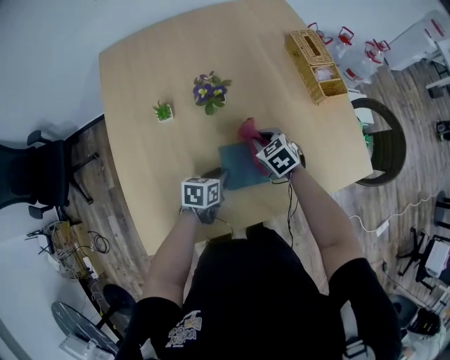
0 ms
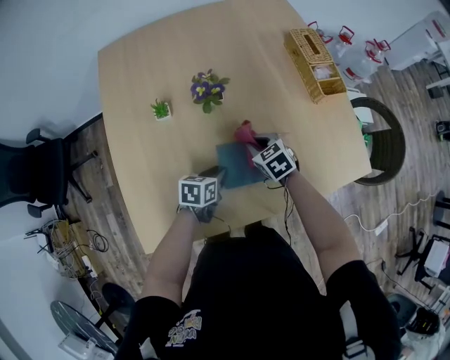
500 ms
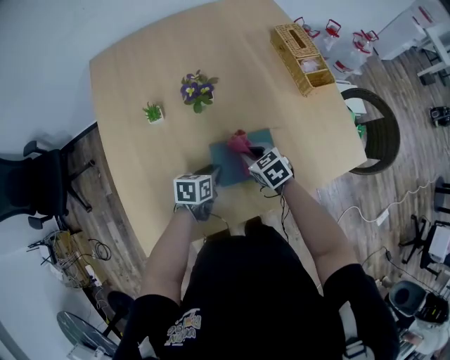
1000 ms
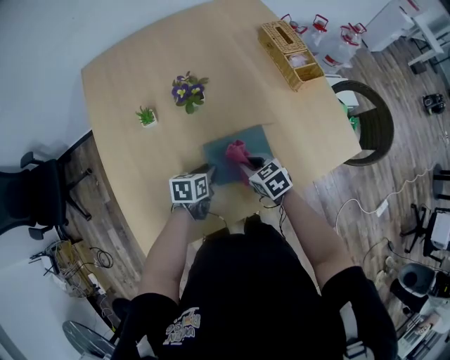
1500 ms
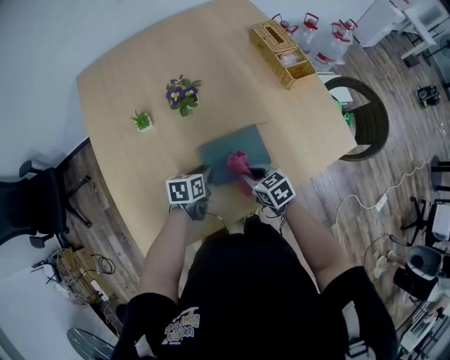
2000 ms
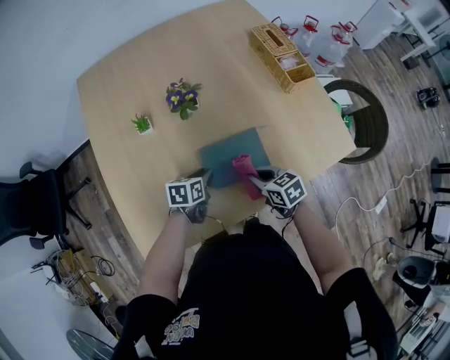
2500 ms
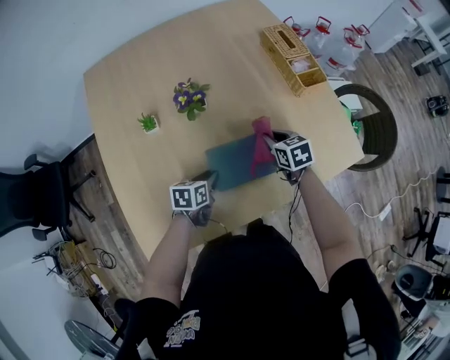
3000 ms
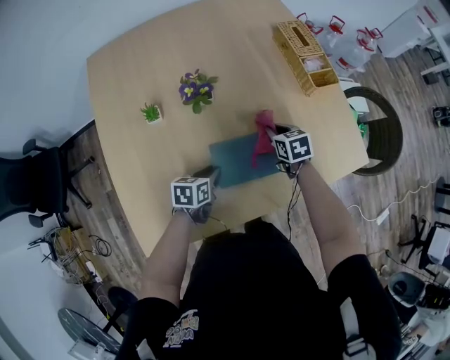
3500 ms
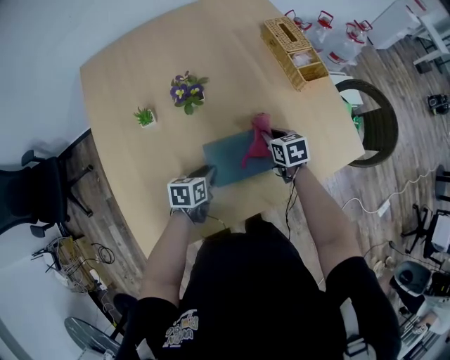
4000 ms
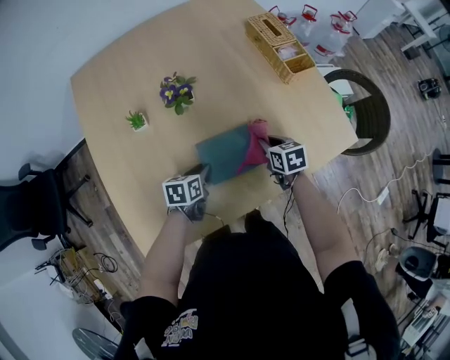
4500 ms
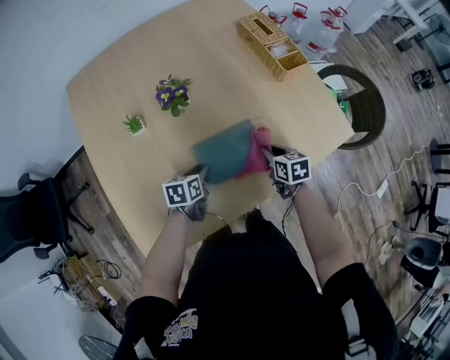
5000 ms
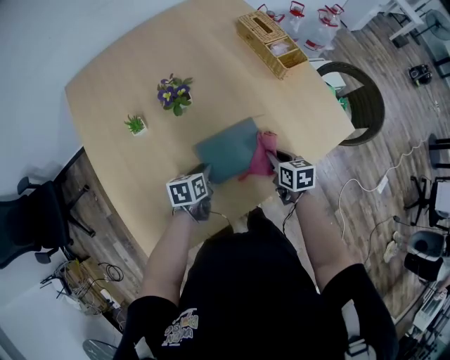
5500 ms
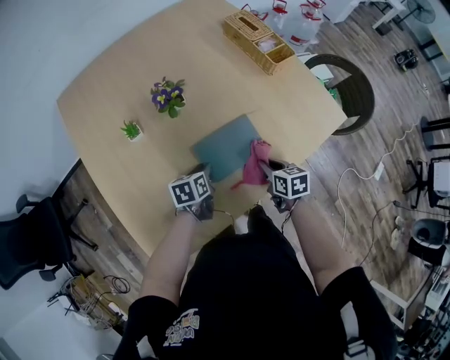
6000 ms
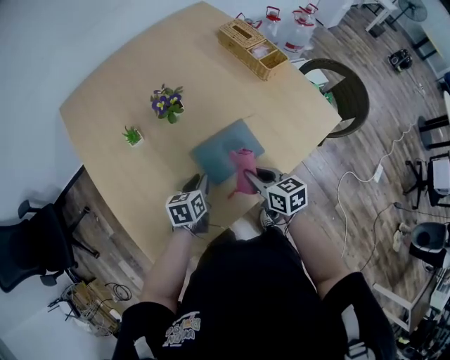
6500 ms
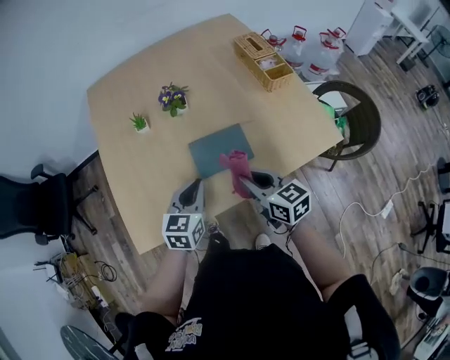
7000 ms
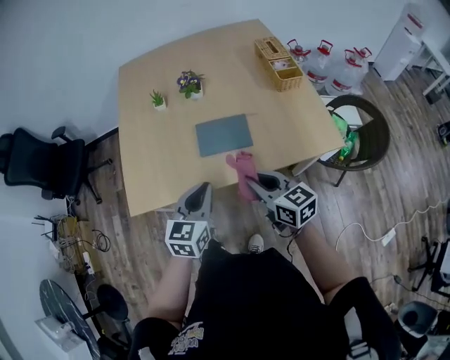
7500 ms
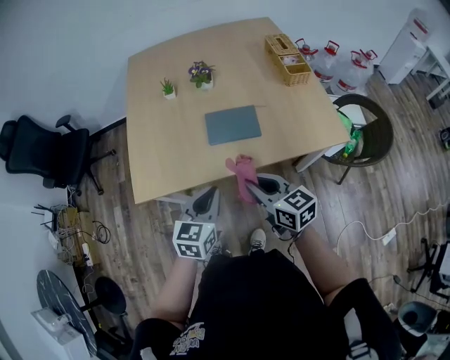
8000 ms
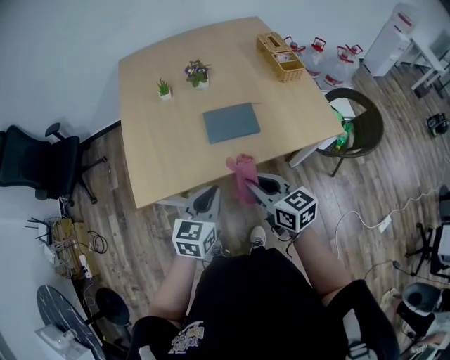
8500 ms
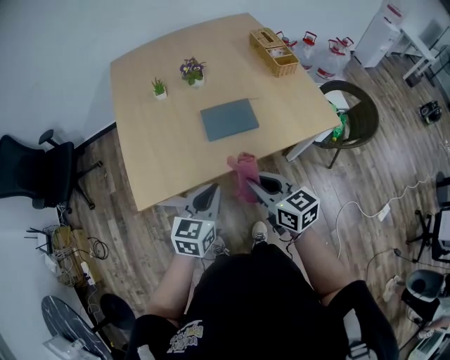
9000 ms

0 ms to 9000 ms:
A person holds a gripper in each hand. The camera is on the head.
0 ms to 2000 ms: The right gripper shifts roughly 15 cm backward, and turns by approximately 20 degrees.
2000 ms to 4500 ms: The right gripper goes roughly 15 cm forward and to the right.
4500 ms to 7000 ms: The left gripper travels upward and backward by roughly 20 cm, and changes its angle by about 40 degrees. Meanwhile the right gripper goes approximately 25 cm backward and upward, and swivels approximately 30 degrees.
7000 ms to 9000 ms: Both grippers travel together backward, approximately 15 cm.

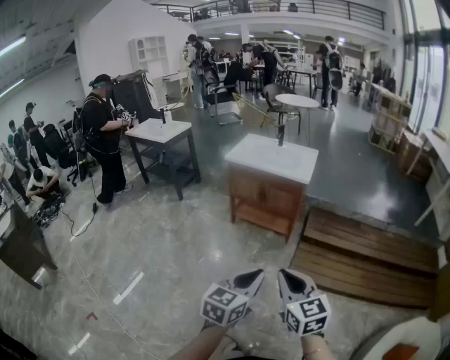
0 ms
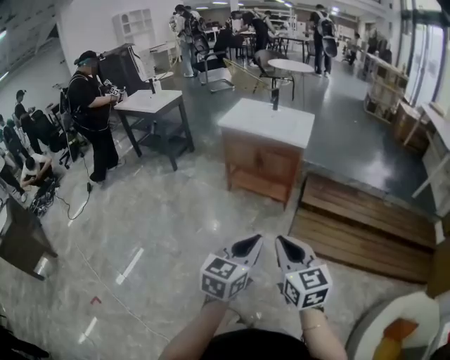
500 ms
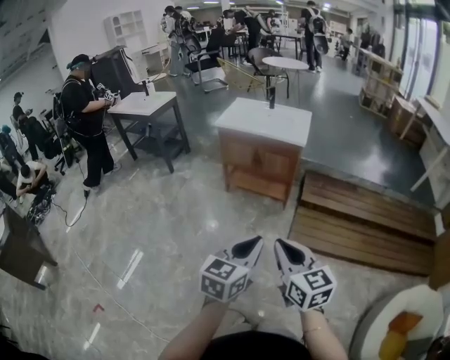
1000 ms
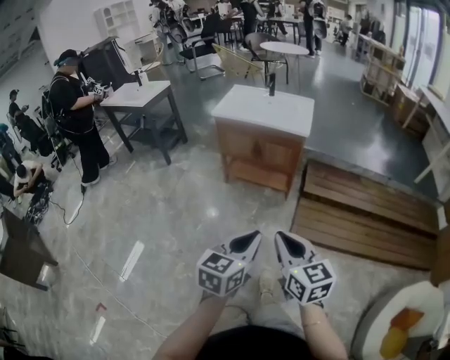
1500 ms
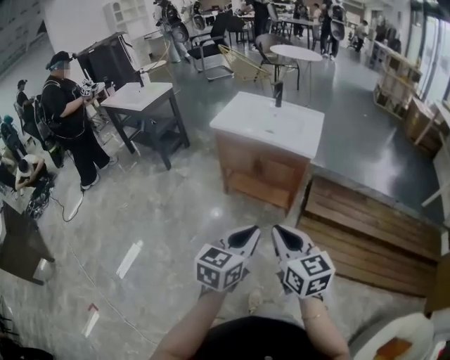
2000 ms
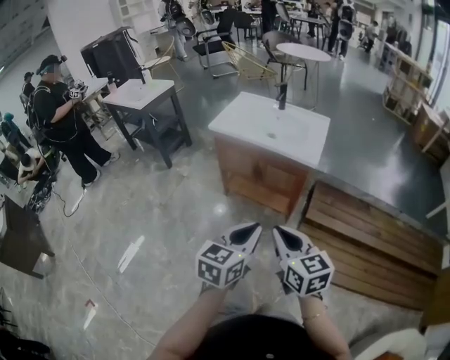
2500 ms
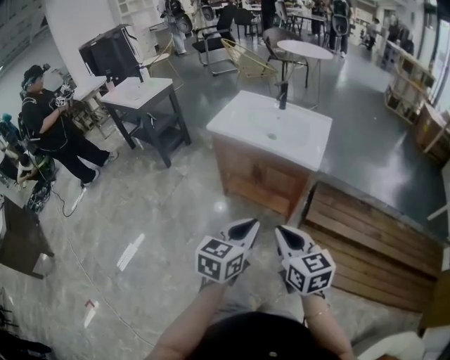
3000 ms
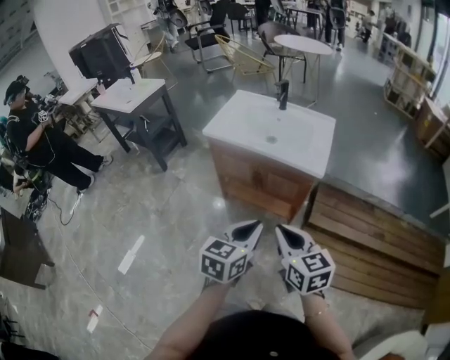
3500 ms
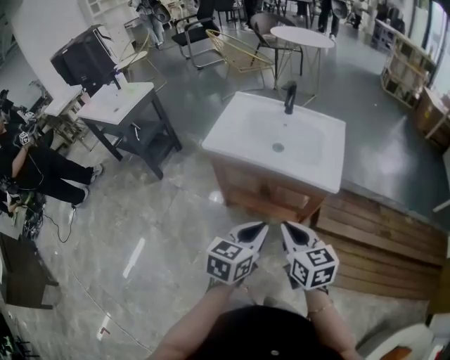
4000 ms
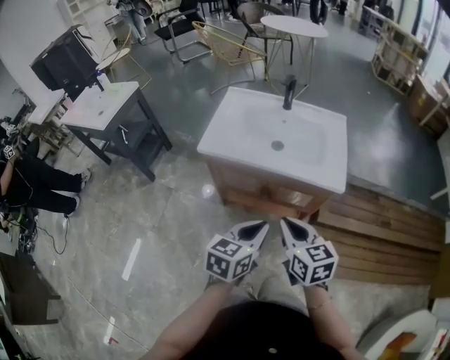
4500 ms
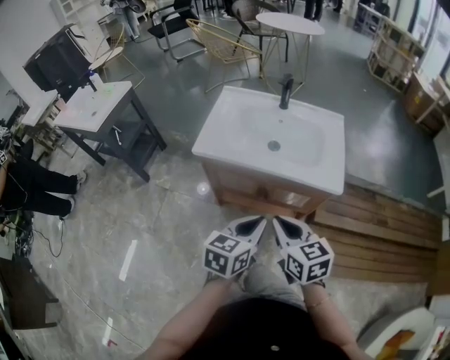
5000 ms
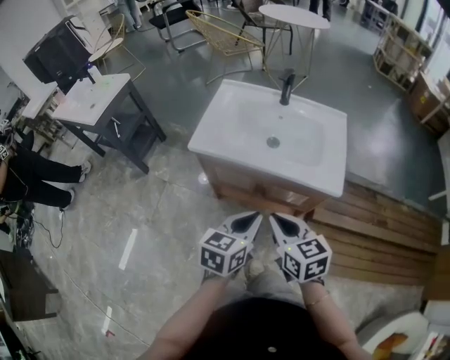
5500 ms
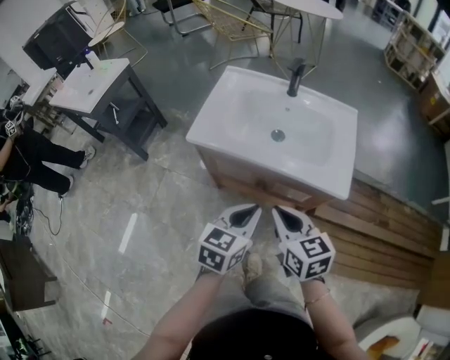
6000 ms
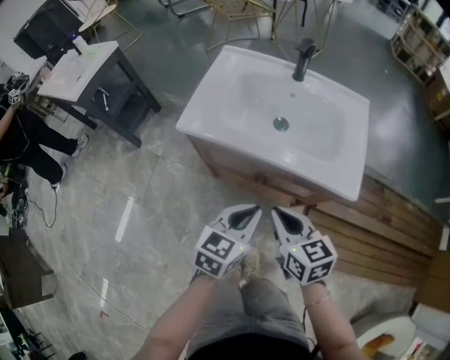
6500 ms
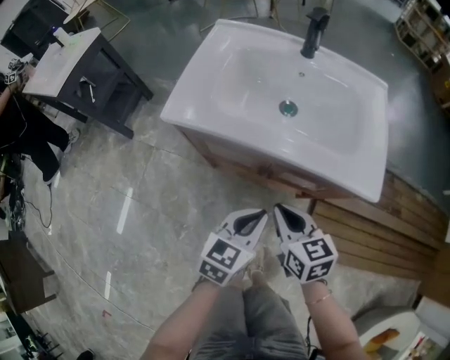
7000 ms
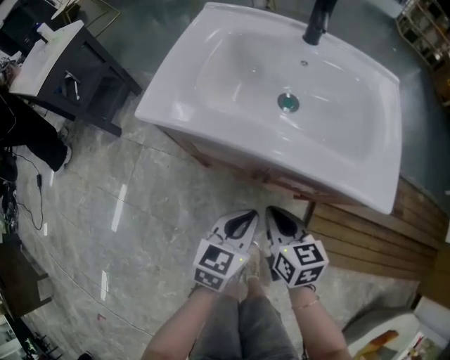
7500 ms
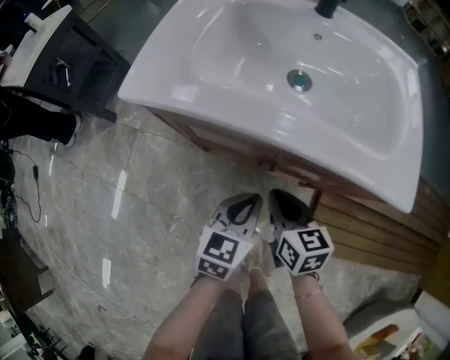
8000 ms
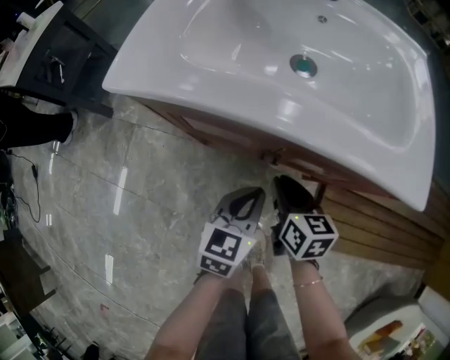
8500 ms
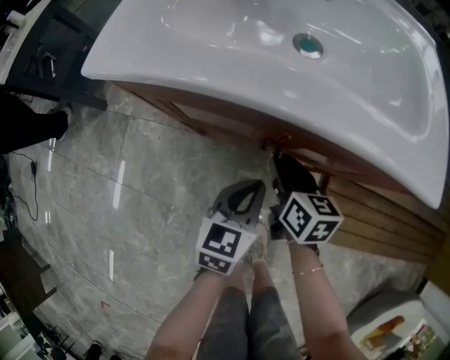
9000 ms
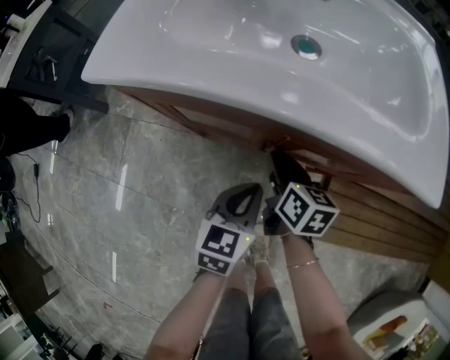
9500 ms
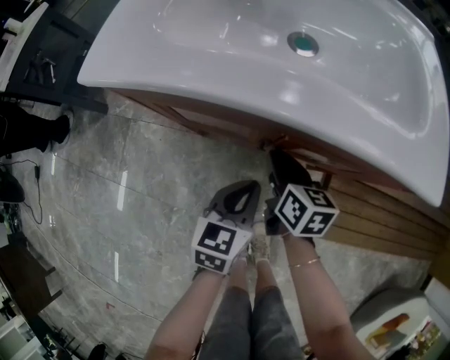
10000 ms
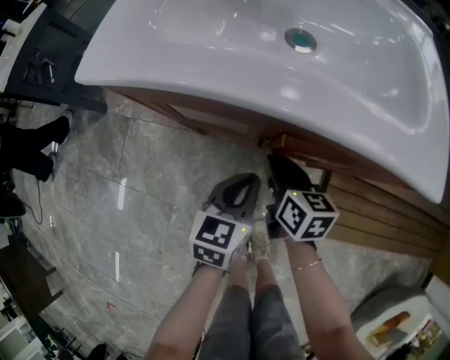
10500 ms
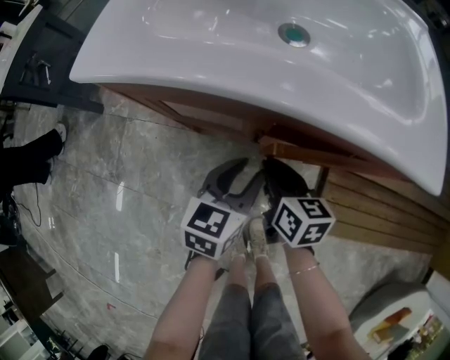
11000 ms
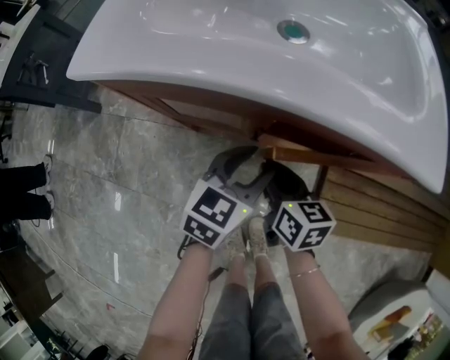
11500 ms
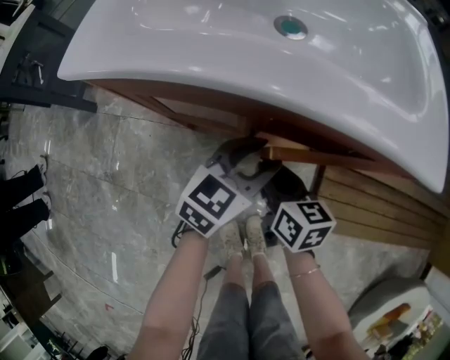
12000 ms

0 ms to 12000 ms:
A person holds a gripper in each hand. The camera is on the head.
0 ms to 2000 ms: Both grippers move forward, some 25 cm.
2000 ms to 4000 ms: The two grippers go roughly 30 cm forward.
4000 ms to 6000 ms: The two grippers go about 10 cm forward.
6000 ms to 8000 ms: Both grippers travel together downward, approximately 25 cm.
8000 ms to 10000 ms: The right gripper moves downward and forward, approximately 10 cm. Meanwhile the left gripper is displaced downward by approximately 5 cm.
10000 ms to 12000 ms: The left gripper shifts roughly 5 cm forward, changes its angle by some 30 degrees, and opens up.

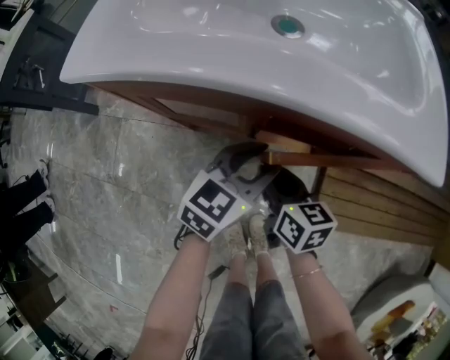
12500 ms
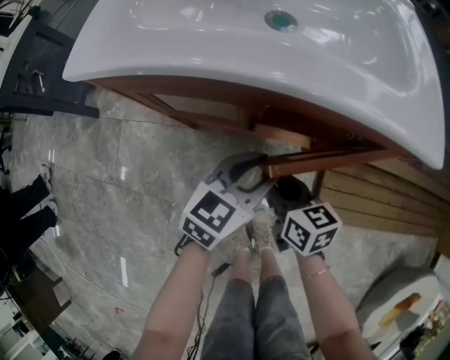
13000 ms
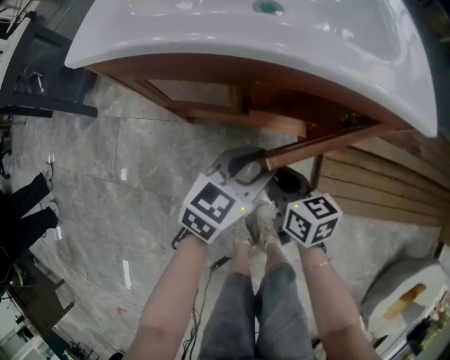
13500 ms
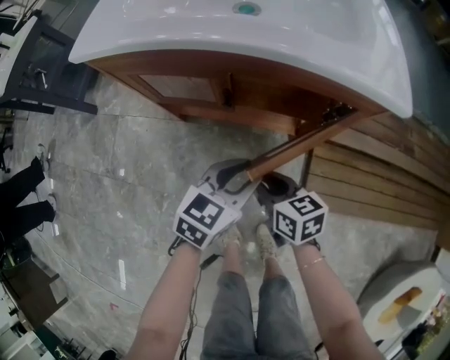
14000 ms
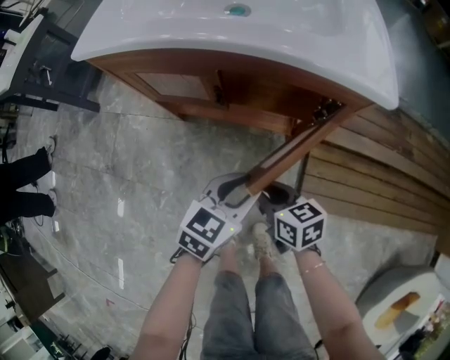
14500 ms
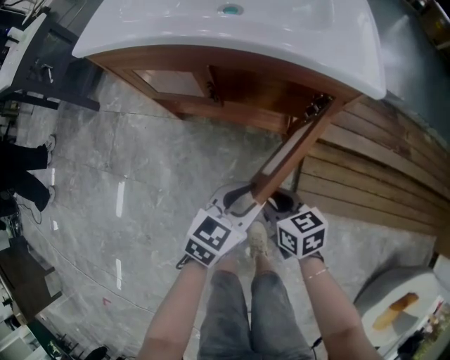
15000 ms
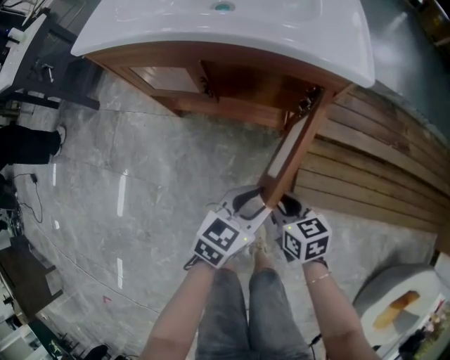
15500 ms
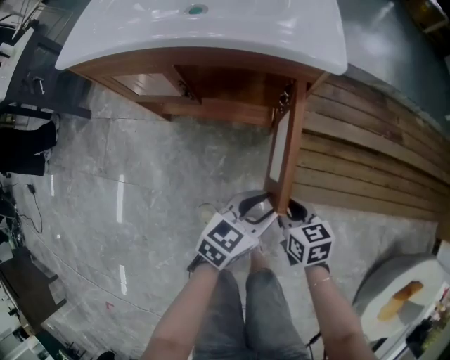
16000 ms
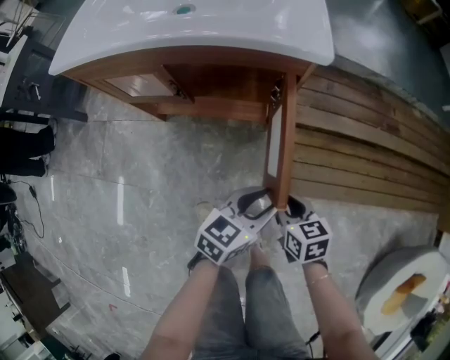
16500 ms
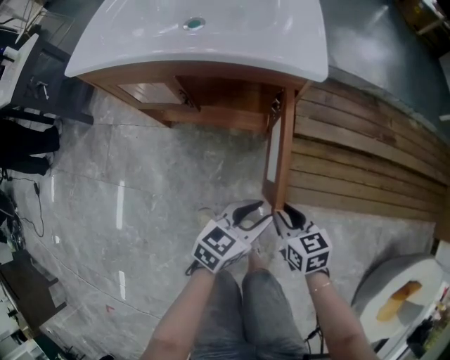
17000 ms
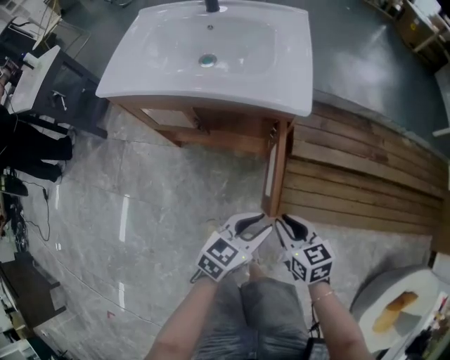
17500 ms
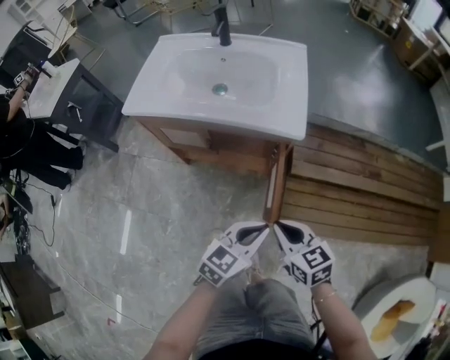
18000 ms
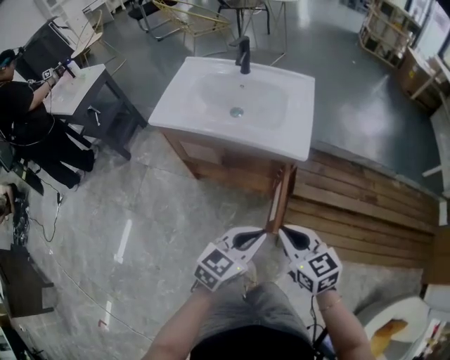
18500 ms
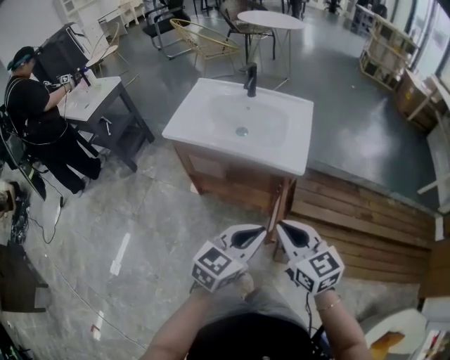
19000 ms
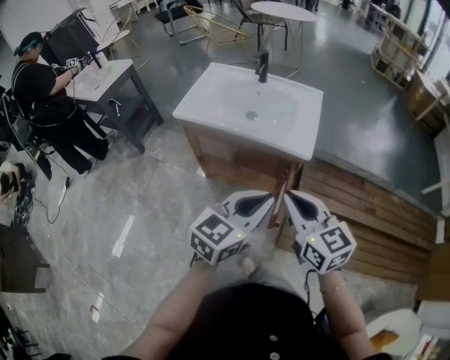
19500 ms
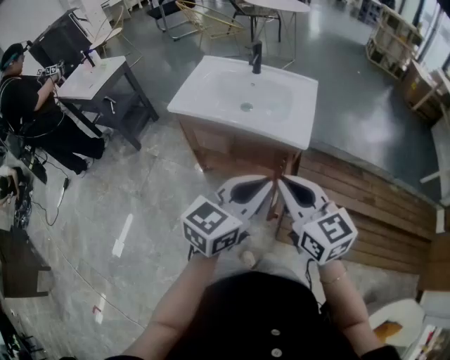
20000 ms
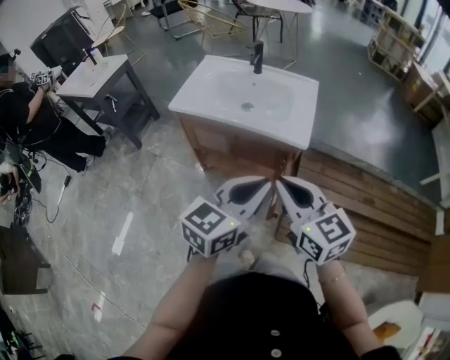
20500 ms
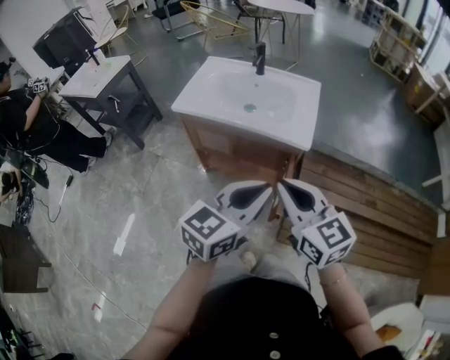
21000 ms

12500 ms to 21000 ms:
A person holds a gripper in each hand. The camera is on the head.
12500 ms to 14500 ms: Both grippers travel together backward and to the right, about 15 cm.
14500 ms to 16500 ms: Both grippers travel together to the right and backward, approximately 15 cm.
16500 ms to 19000 ms: Both grippers travel together upward, roughly 40 cm. The left gripper changes its angle by roughly 20 degrees, and closes up, while the right gripper rotates some 40 degrees.
19000 ms to 21000 ms: Both grippers move upward, some 10 cm.
